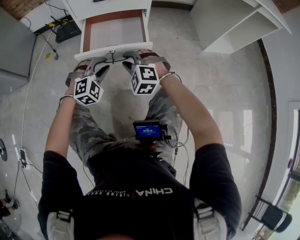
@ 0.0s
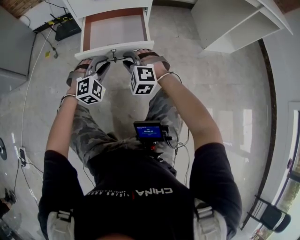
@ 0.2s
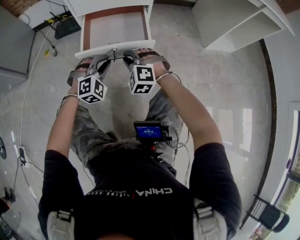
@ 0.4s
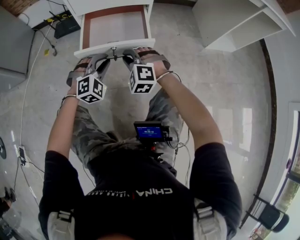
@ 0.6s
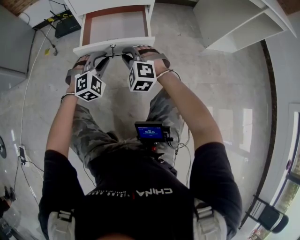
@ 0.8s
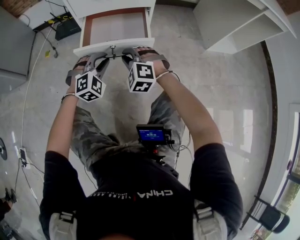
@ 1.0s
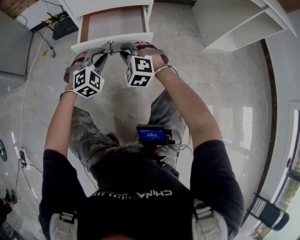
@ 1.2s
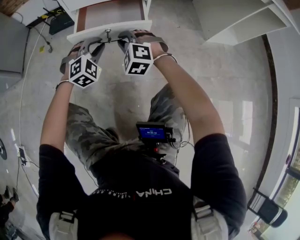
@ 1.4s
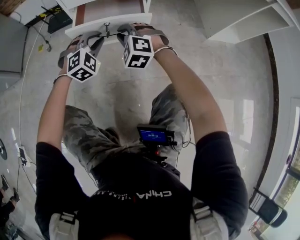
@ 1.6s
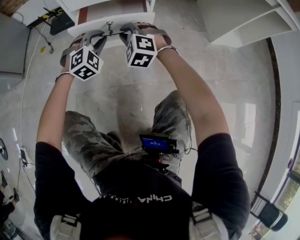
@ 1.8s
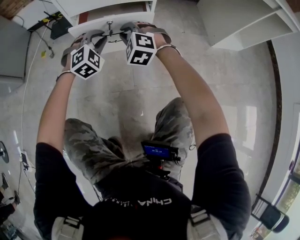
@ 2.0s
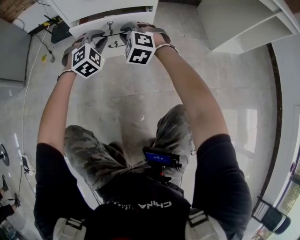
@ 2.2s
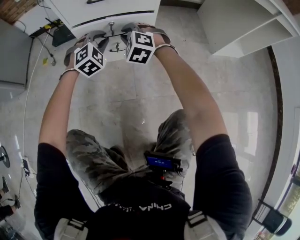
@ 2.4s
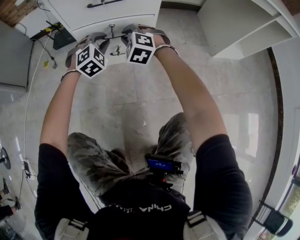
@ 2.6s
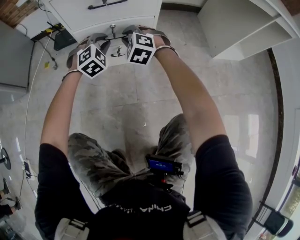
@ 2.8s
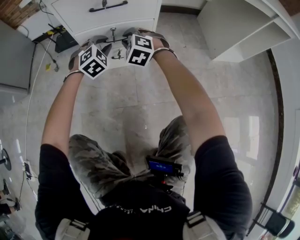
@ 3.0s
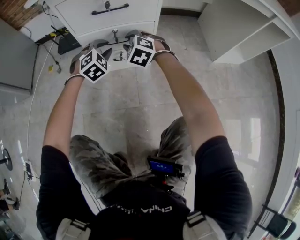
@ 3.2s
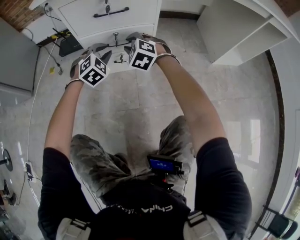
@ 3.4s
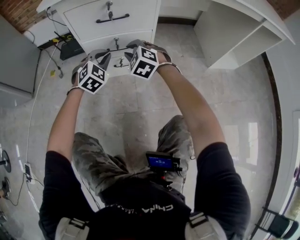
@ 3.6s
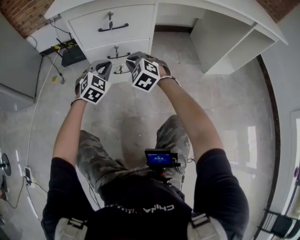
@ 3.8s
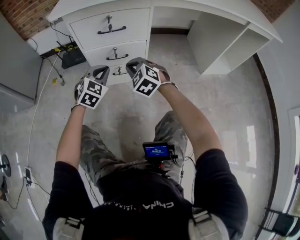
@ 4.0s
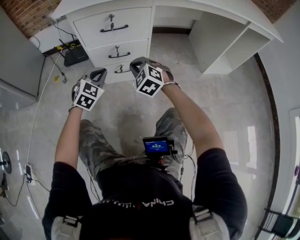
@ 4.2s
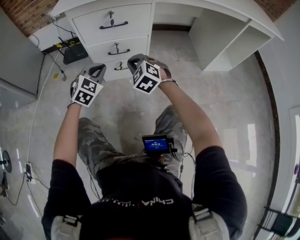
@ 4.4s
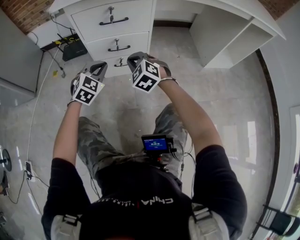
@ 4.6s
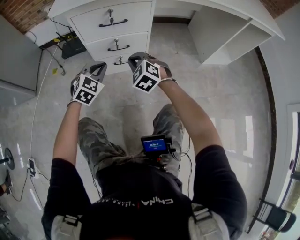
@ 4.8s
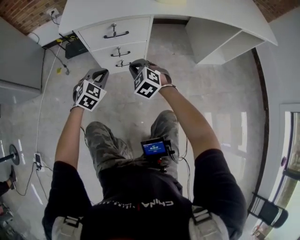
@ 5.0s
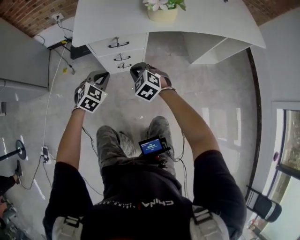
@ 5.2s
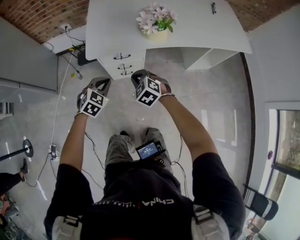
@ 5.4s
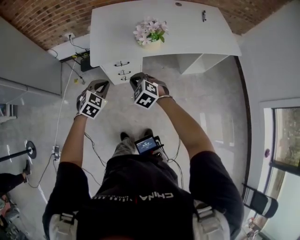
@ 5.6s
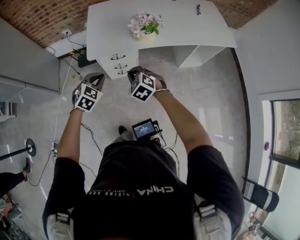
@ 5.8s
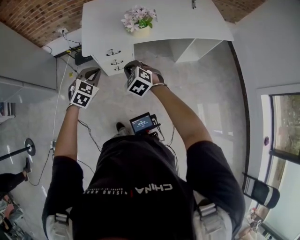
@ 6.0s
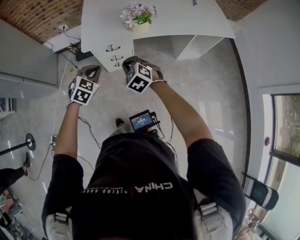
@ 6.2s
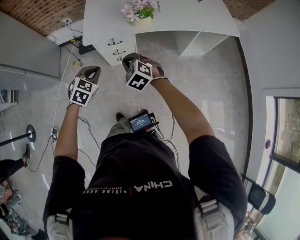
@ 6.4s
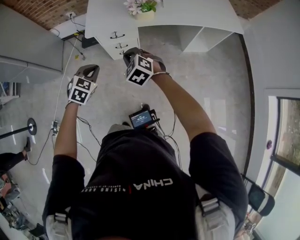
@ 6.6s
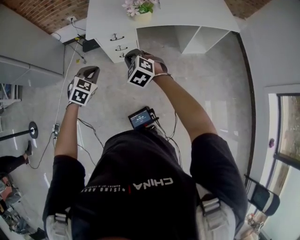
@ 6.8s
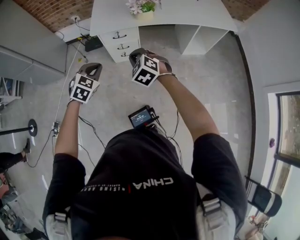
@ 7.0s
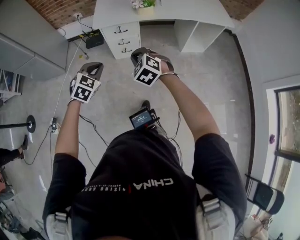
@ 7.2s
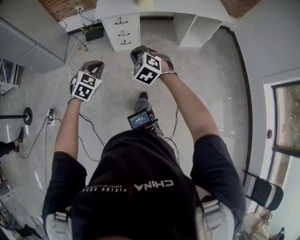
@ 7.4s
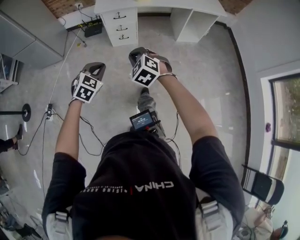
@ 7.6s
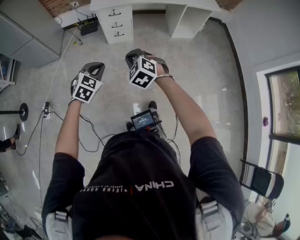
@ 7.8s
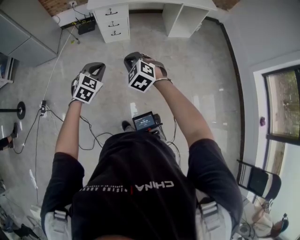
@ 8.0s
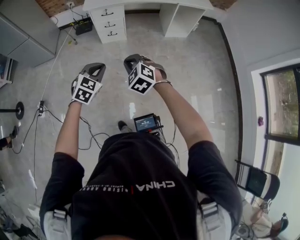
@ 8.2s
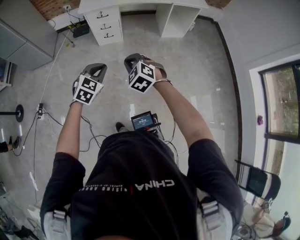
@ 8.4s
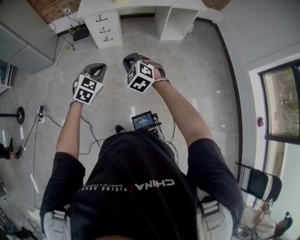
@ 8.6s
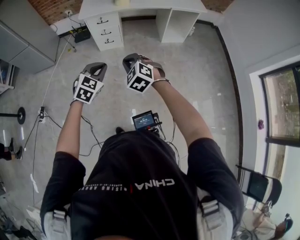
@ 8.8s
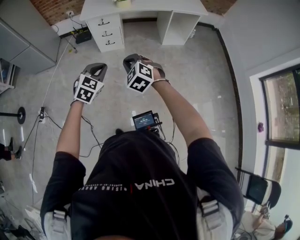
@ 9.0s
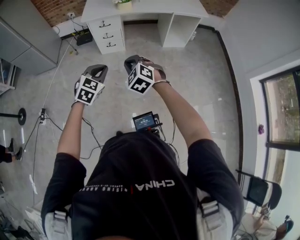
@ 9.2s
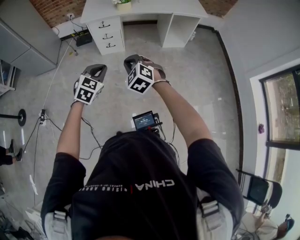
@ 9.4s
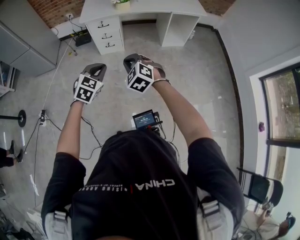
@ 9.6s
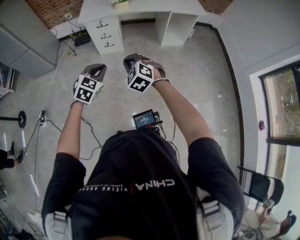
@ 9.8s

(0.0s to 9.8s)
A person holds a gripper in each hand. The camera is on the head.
0.0s - 1.4s: Both grippers move forward, about 10 cm.
1.4s - 2.8s: The grippers both shift forward by roughly 15 cm.
2.8s - 4.2s: Both grippers move backward and upward, some 15 cm. The left gripper turns by some 20 degrees.
4.2s - 5.6s: Both grippers travel together upward, about 50 cm.
5.6s - 7.0s: The grippers both shift backward by roughly 20 cm.
7.0s - 8.4s: Both grippers move backward, approximately 40 cm.
8.4s - 9.8s: The right gripper moves roughly 5 cm. Meanwhile the left gripper shifts by roughly 5 cm.

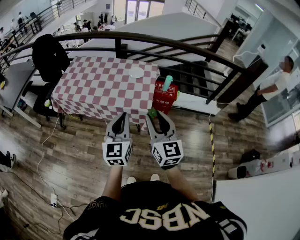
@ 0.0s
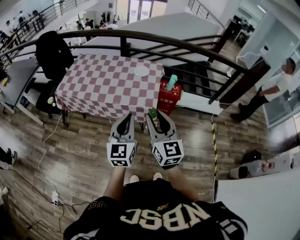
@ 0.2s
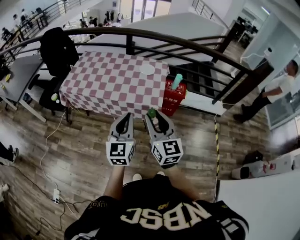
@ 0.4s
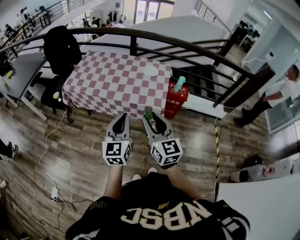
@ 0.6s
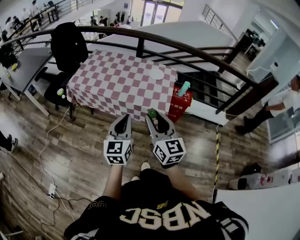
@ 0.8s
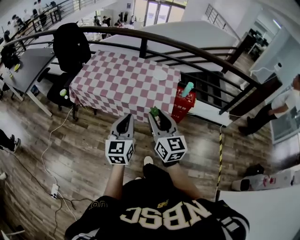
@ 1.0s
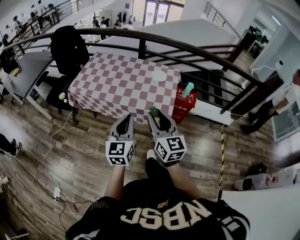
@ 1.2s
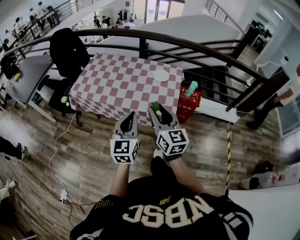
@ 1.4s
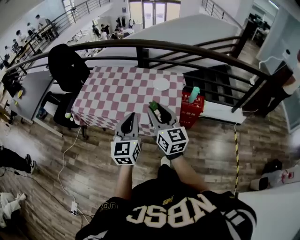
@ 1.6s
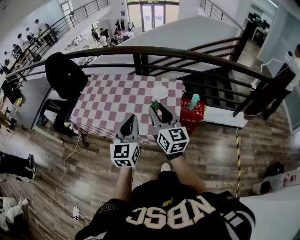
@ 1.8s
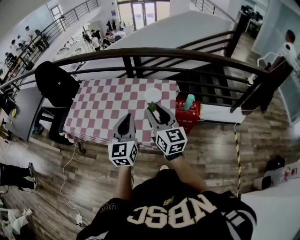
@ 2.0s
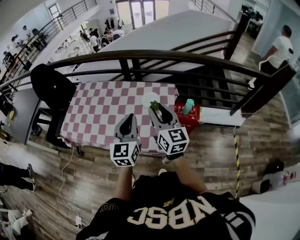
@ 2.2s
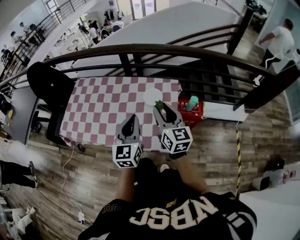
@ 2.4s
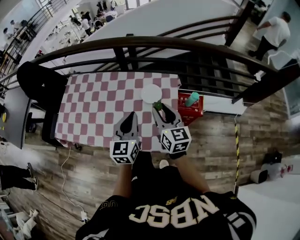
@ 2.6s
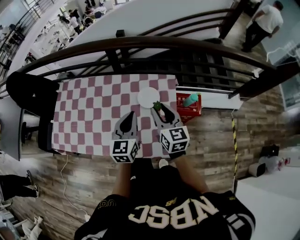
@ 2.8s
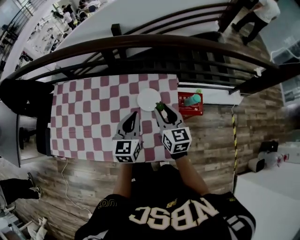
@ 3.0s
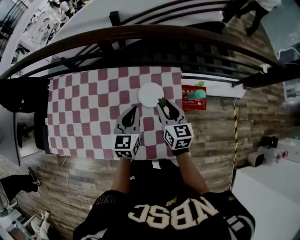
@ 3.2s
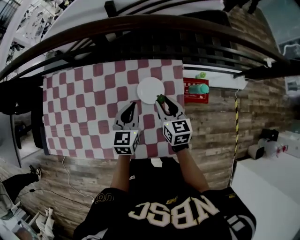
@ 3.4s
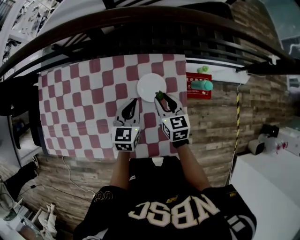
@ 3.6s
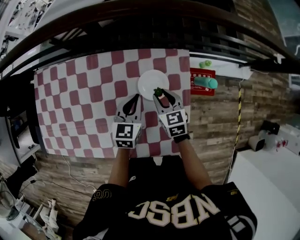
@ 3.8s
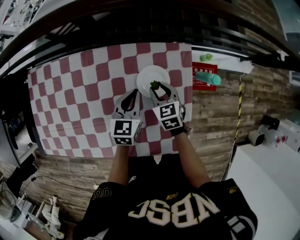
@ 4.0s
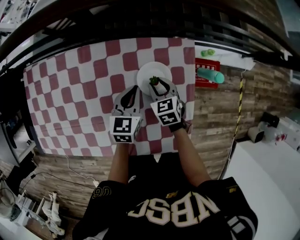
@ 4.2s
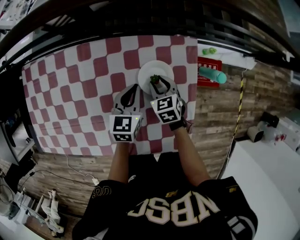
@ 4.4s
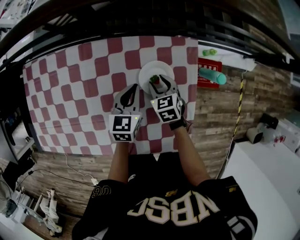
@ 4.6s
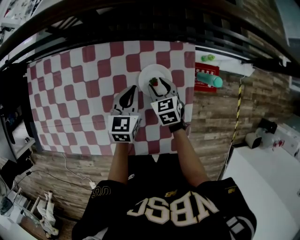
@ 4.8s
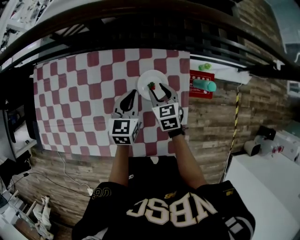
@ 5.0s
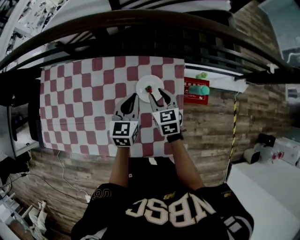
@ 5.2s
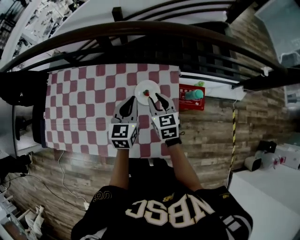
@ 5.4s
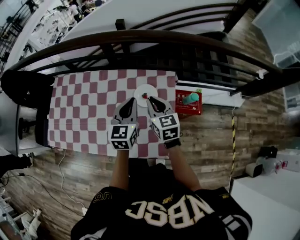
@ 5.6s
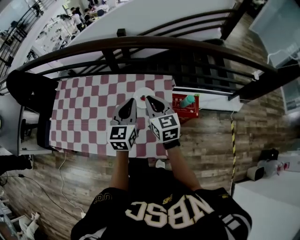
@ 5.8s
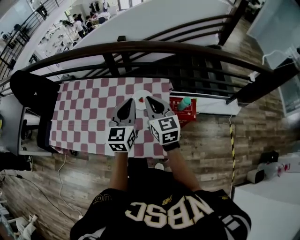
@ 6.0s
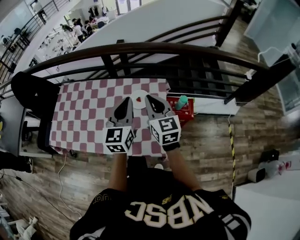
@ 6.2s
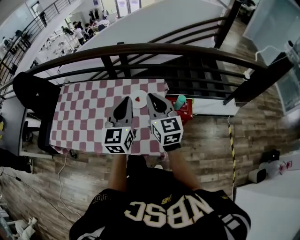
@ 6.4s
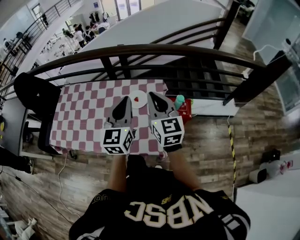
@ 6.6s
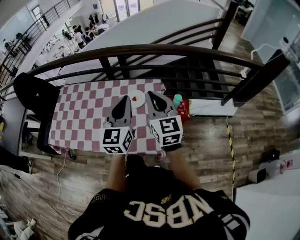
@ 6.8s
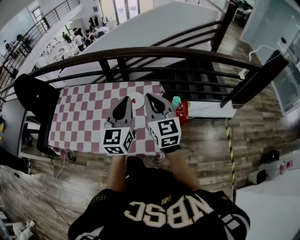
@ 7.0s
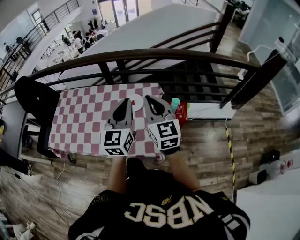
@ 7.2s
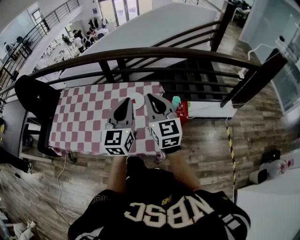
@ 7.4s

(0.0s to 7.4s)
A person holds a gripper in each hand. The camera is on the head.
0.0s - 1.4s: The left gripper heads to the left and forward, covering some 10 cm. The right gripper goes some 15 cm forward and to the left.
1.4s - 3.0s: The two grippers travel together, forward, approximately 40 cm. The right gripper swivels roughly 20 degrees. The left gripper swivels roughly 20 degrees.
3.0s - 4.4s: The right gripper heads downward, covering approximately 25 cm, and angles its fingers downward, by some 30 degrees, while the left gripper goes roughly 25 cm downward and forward.
4.4s - 6.0s: The left gripper moves upward and backward, approximately 30 cm, and rotates roughly 30 degrees; the right gripper moves upward, roughly 35 cm, angles its fingers upward, by some 40 degrees, and closes up.
6.0s - 7.4s: The two grippers go about 15 cm backward, upward and to the right.

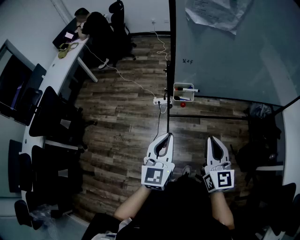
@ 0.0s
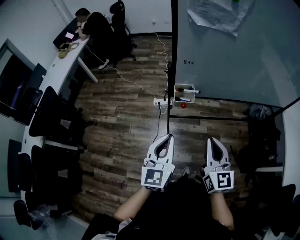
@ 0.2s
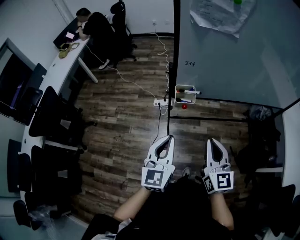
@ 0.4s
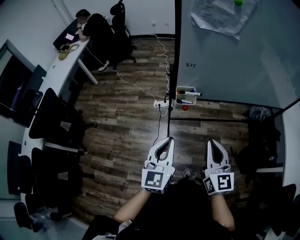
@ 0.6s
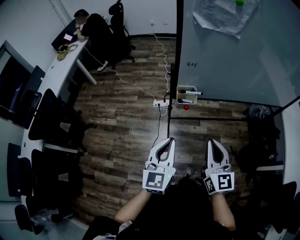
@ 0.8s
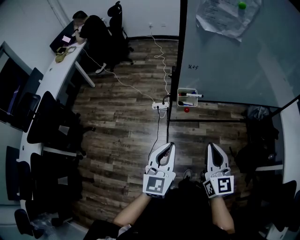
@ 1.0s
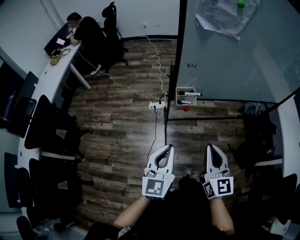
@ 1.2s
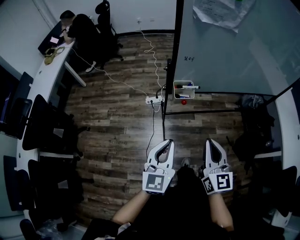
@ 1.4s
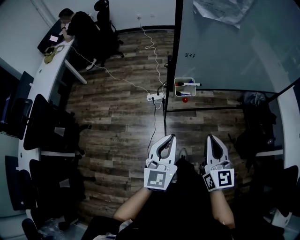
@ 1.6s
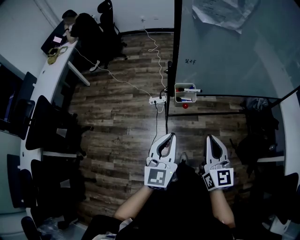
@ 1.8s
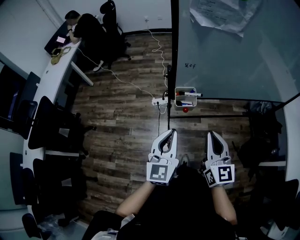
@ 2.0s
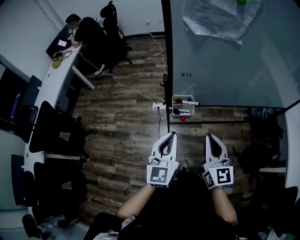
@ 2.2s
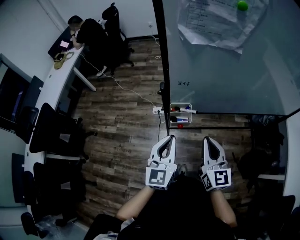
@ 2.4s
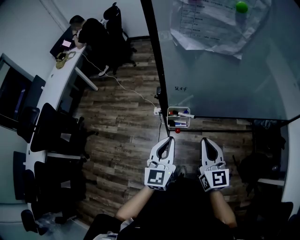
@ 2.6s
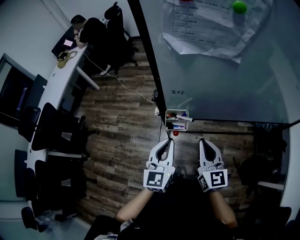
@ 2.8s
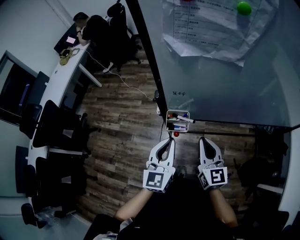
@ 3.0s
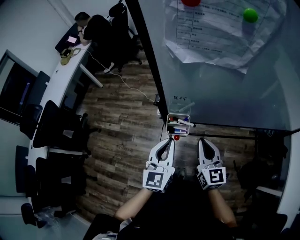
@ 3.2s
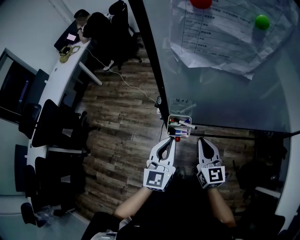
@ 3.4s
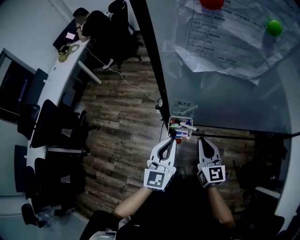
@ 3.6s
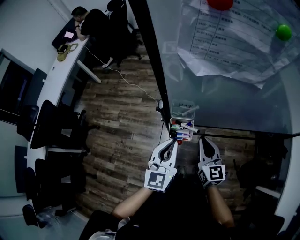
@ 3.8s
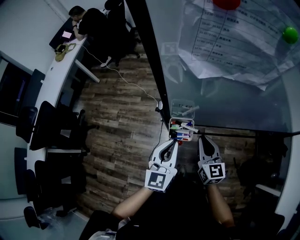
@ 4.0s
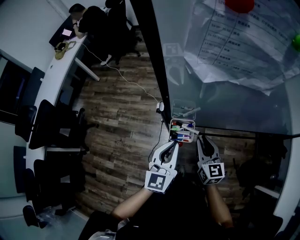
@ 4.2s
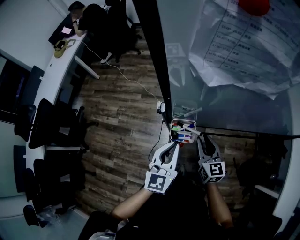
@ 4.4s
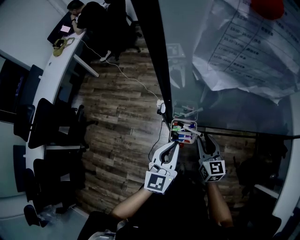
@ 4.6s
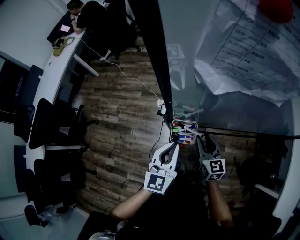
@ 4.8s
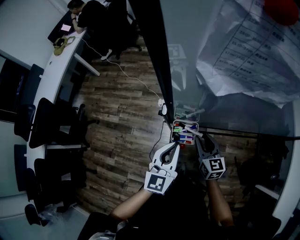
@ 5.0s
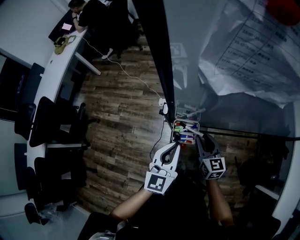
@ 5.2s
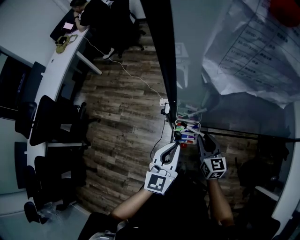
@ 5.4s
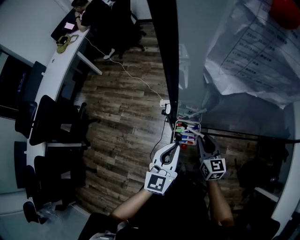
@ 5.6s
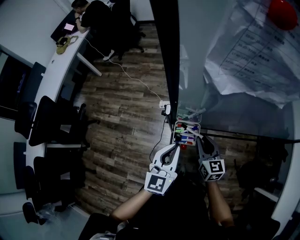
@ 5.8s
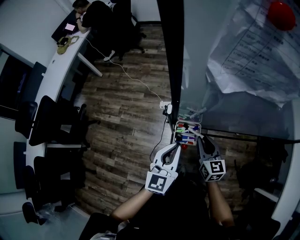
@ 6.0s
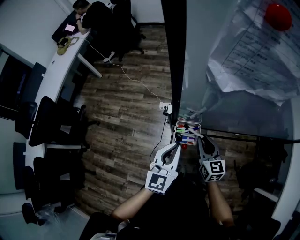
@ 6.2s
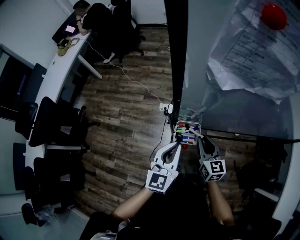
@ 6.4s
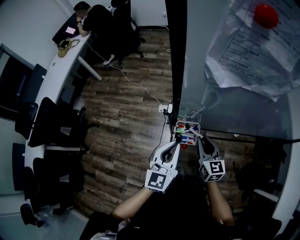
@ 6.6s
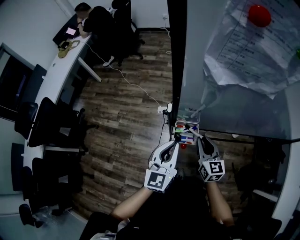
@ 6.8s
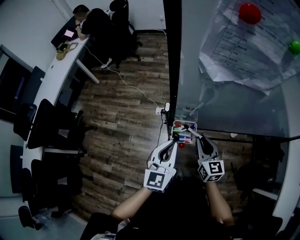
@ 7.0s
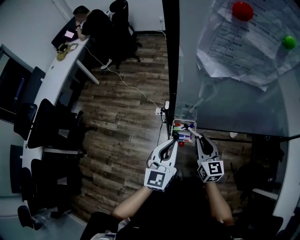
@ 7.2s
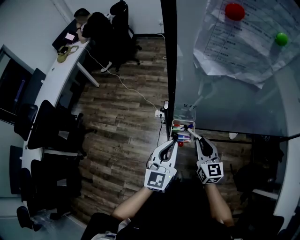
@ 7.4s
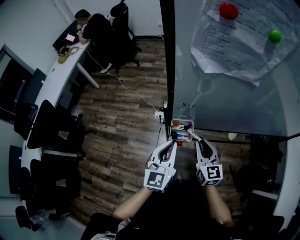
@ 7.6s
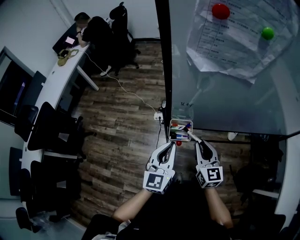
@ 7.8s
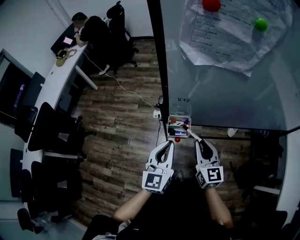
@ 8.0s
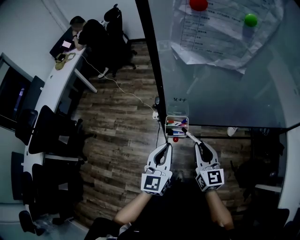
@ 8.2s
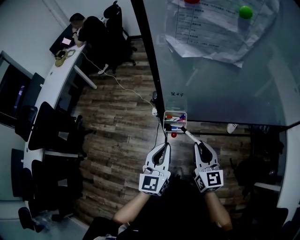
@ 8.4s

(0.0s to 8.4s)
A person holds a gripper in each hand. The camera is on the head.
0.0s - 1.4s: The right gripper is displaced to the left by about 5 cm.
1.4s - 2.8s: The left gripper goes approximately 20 cm forward and to the right. The right gripper heads forward, covering some 20 cm.
2.8s - 4.2s: The left gripper moves forward, some 5 cm. The right gripper goes about 10 cm downward and forward.
4.2s - 5.6s: The right gripper ends up roughly 5 cm from where it was.
5.6s - 7.0s: The grippers make only small movements.
7.0s - 8.4s: The left gripper is displaced backward by some 5 cm, while the right gripper goes roughly 10 cm backward and upward.
